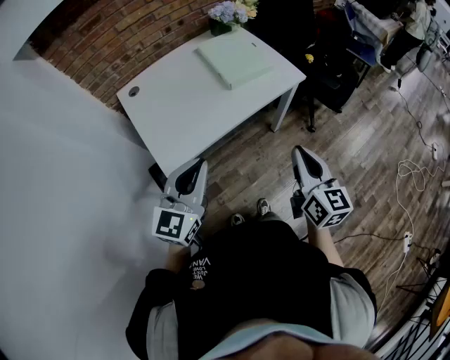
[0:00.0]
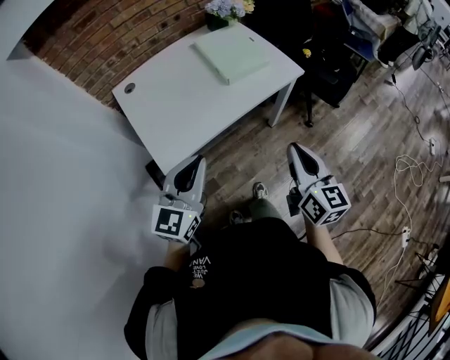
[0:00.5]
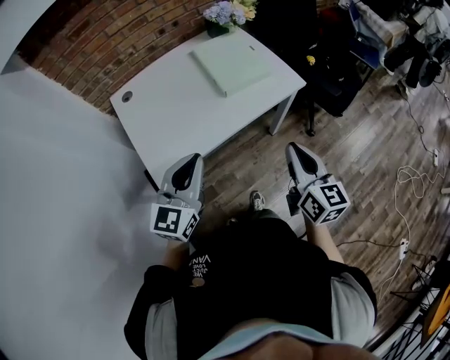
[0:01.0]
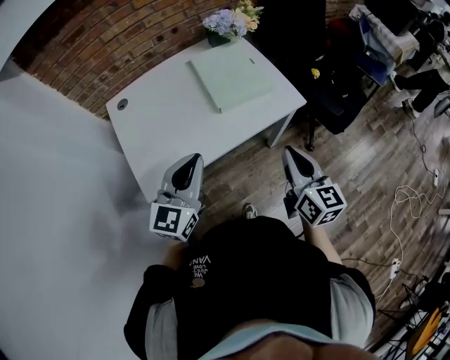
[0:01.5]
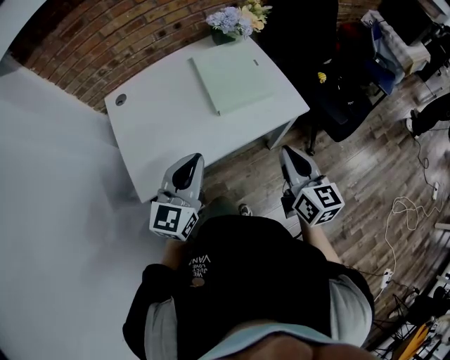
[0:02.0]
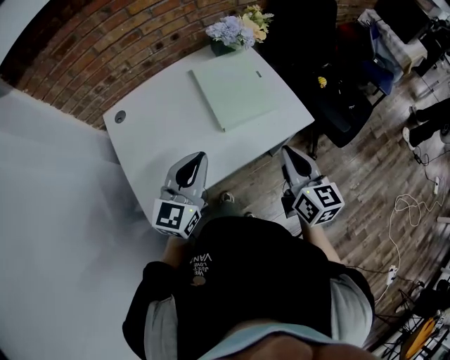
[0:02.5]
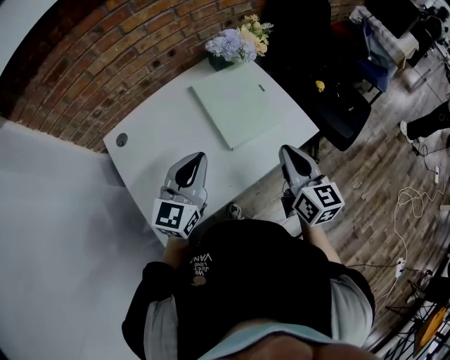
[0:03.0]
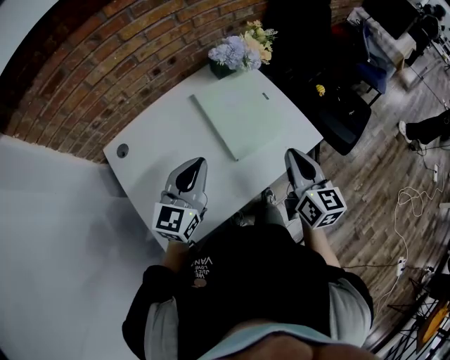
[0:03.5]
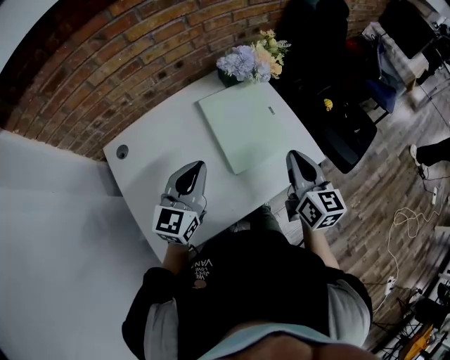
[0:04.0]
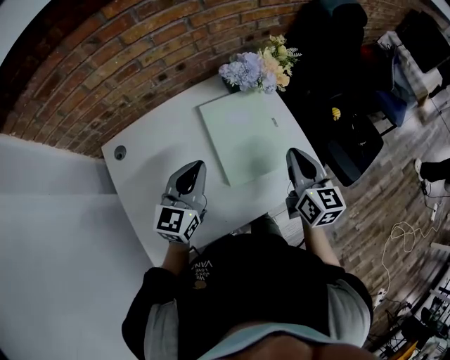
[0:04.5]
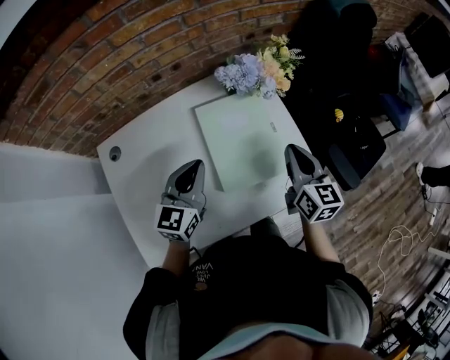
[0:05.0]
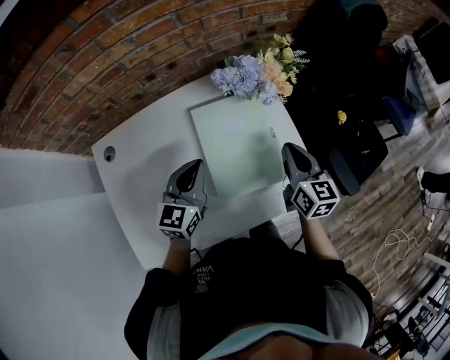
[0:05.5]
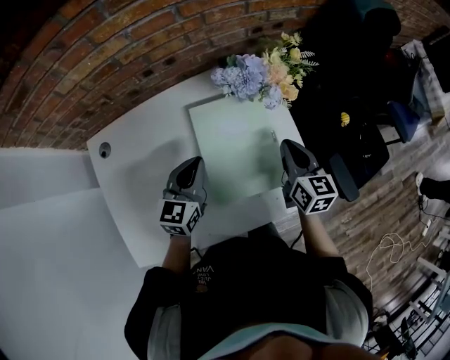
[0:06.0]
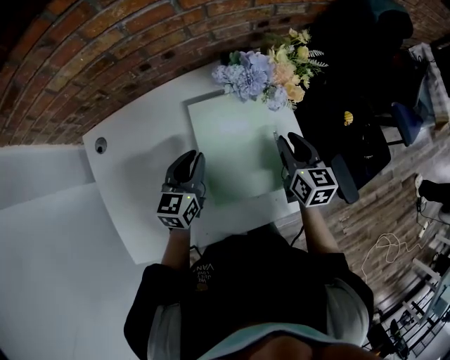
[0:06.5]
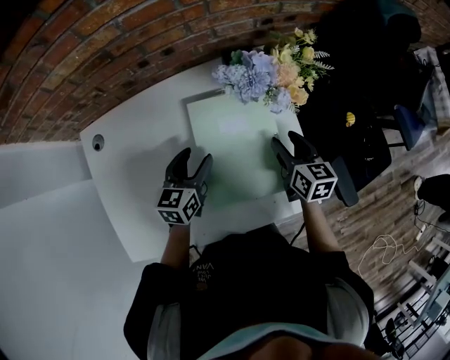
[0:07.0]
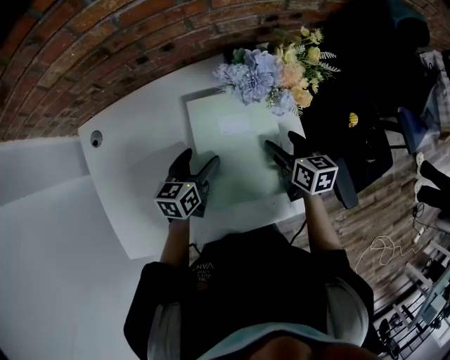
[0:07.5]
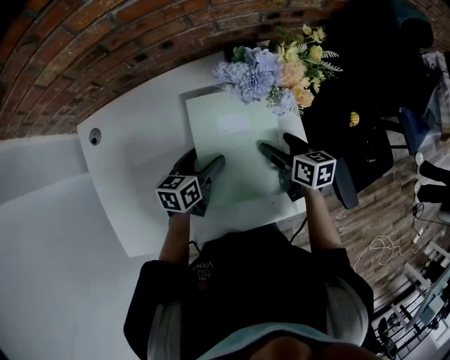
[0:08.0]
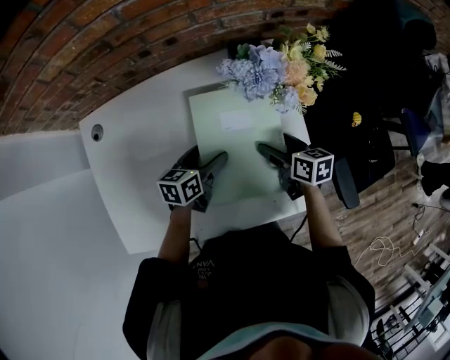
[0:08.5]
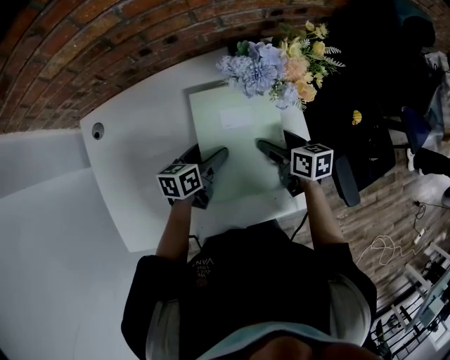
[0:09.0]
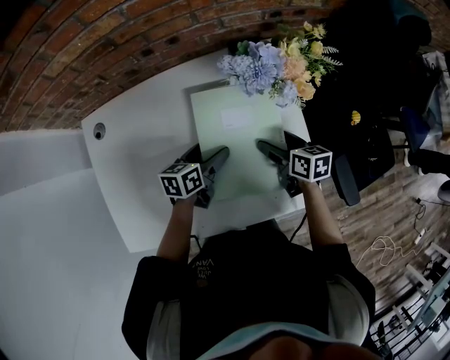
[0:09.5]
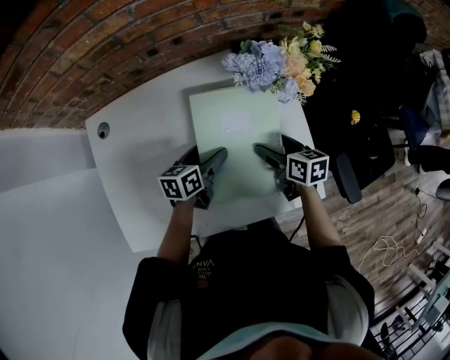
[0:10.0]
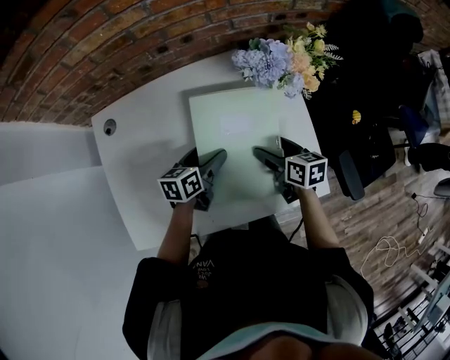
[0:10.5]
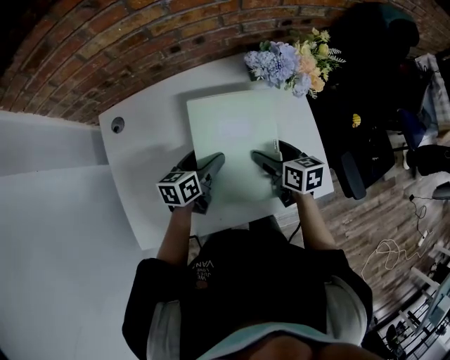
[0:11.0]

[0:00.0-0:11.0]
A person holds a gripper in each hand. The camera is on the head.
0:00.0 to 0:02.0: The right gripper is displaced forward by about 20 cm; the left gripper heads forward and to the right, covering some 20 cm.
0:02.0 to 0:03.5: Both grippers travel together forward and to the left, approximately 15 cm.
0:03.5 to 0:05.5: The right gripper moves forward, approximately 20 cm. Meanwhile the left gripper is displaced forward and downward by approximately 15 cm, and changes its angle by approximately 20 degrees.
0:05.5 to 0:07.5: The right gripper shifts about 15 cm downward and forward, turns by approximately 30 degrees, and opens up. Meanwhile the left gripper goes some 15 cm downward, swivels about 30 degrees, and opens its fingers.
0:07.5 to 0:09.0: The grippers stay close to where they were, moving slightly.
0:09.0 to 0:11.0: The left gripper shifts some 10 cm to the left. The right gripper shifts approximately 10 cm to the left and backward.

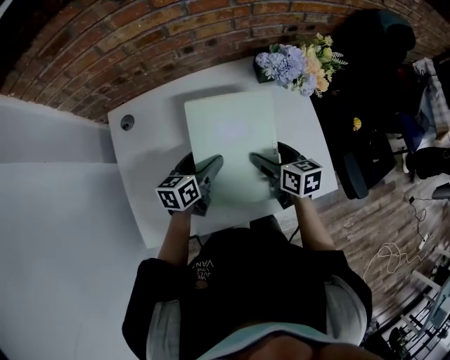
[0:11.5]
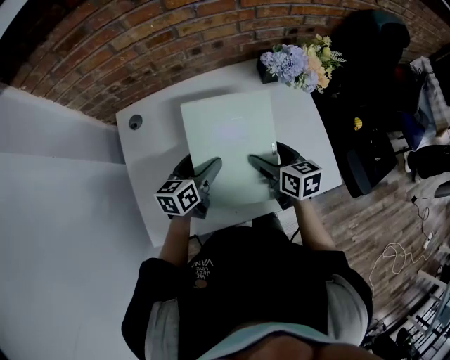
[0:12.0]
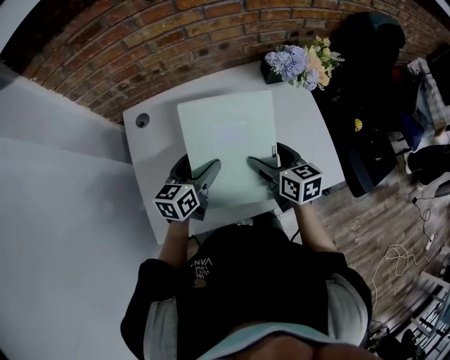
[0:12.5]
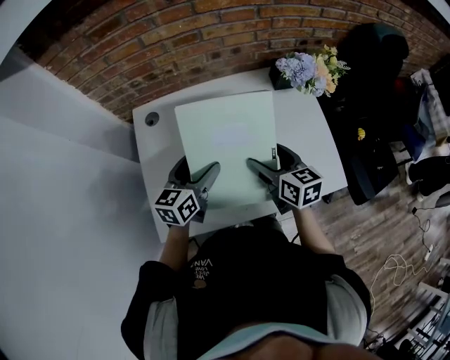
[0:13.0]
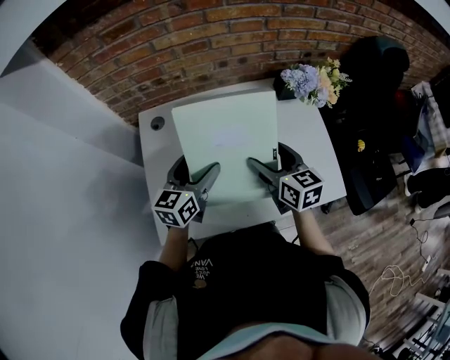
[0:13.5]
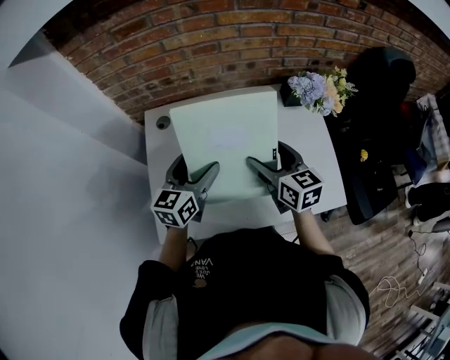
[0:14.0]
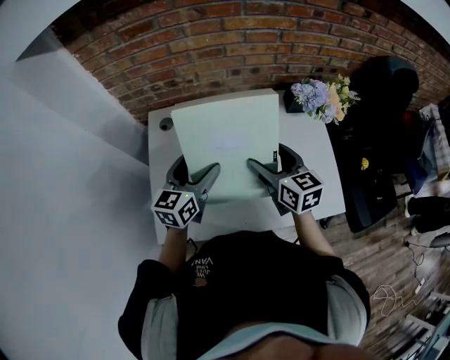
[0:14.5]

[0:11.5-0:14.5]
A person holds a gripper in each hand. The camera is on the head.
0:11.5 to 0:13.0: The right gripper travels to the left and upward by roughly 10 cm. The left gripper travels upward and to the left by roughly 10 cm.
0:13.0 to 0:14.5: The two grippers go about 5 cm upward.

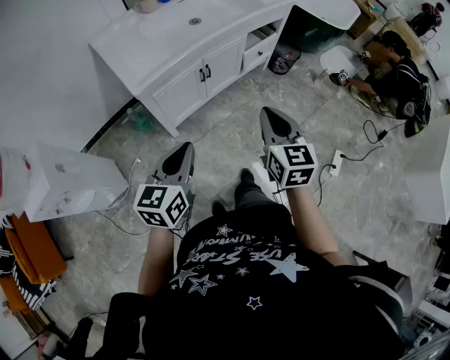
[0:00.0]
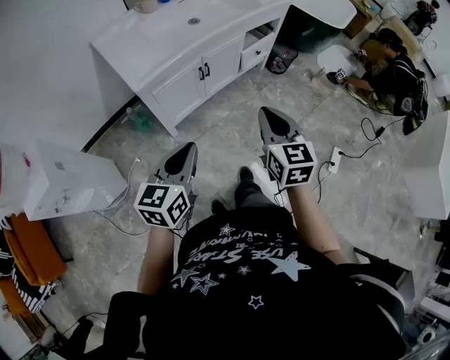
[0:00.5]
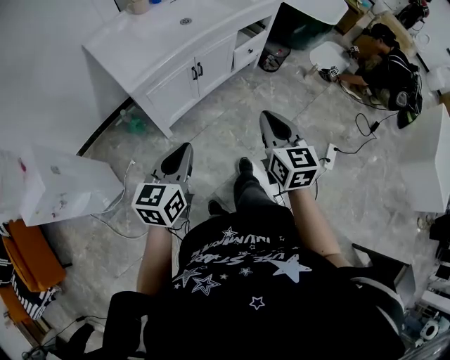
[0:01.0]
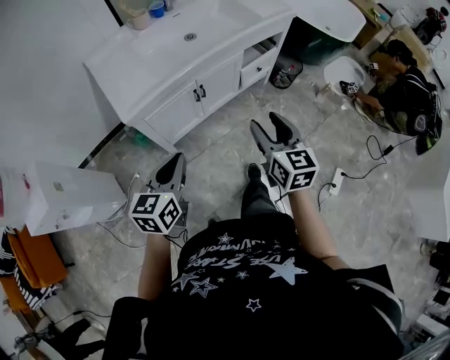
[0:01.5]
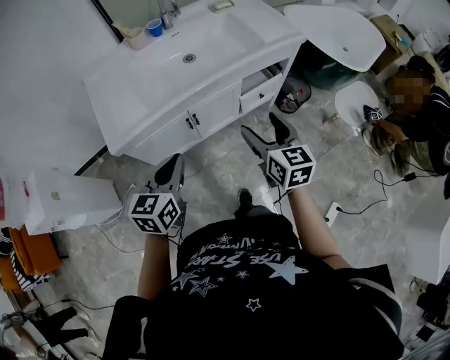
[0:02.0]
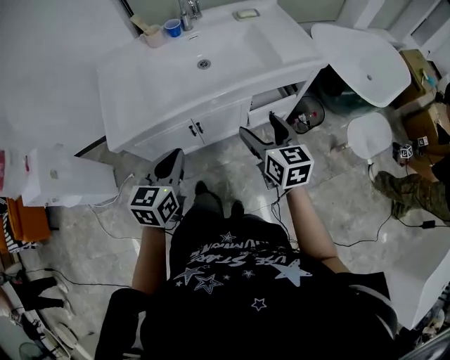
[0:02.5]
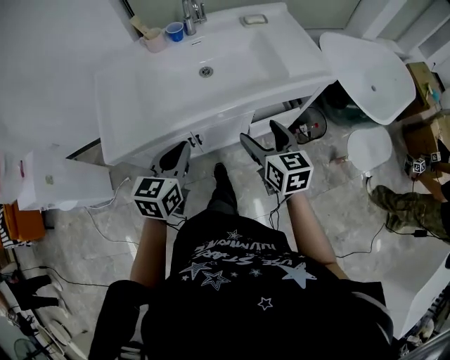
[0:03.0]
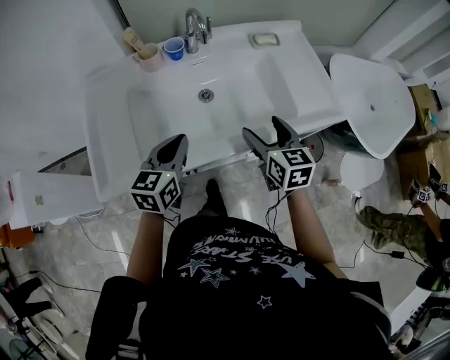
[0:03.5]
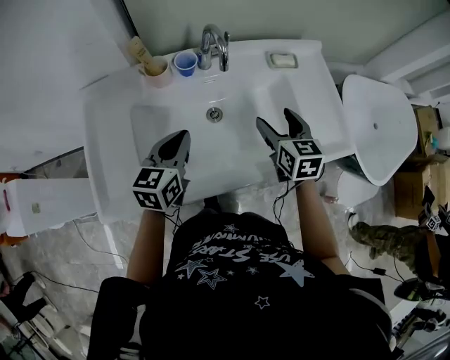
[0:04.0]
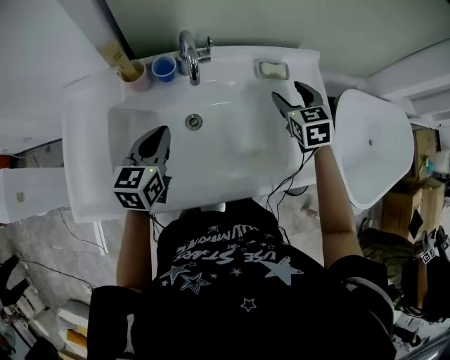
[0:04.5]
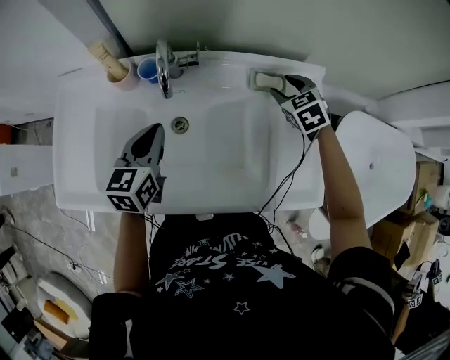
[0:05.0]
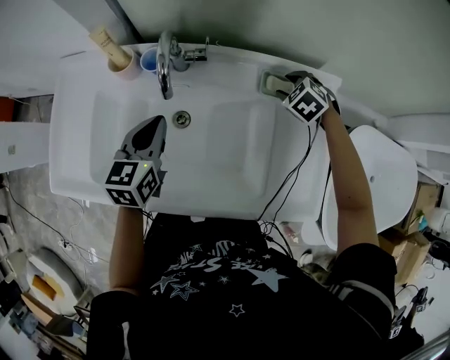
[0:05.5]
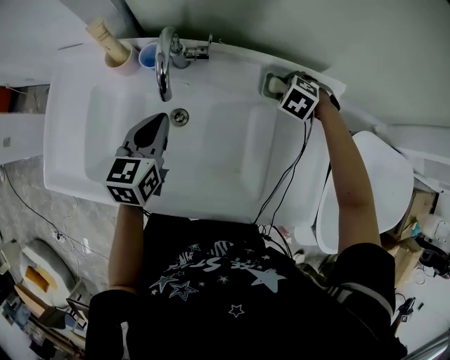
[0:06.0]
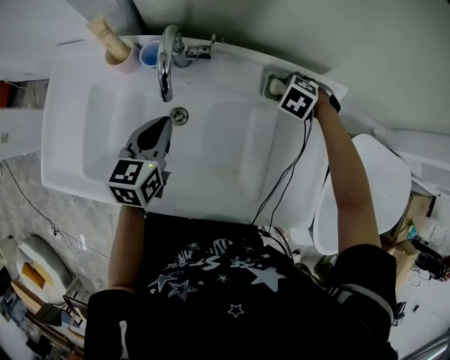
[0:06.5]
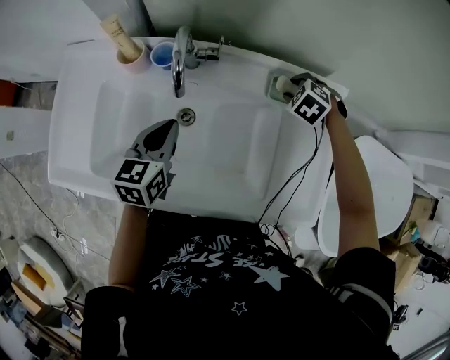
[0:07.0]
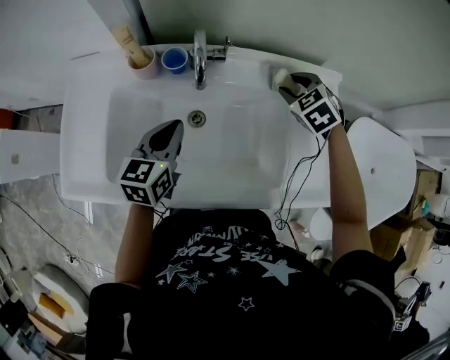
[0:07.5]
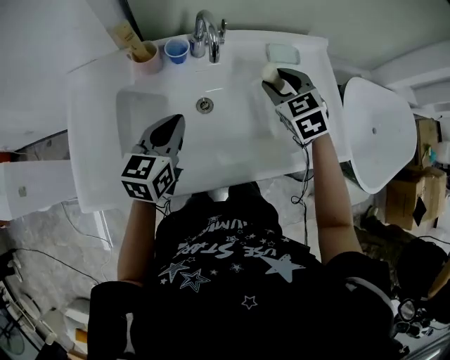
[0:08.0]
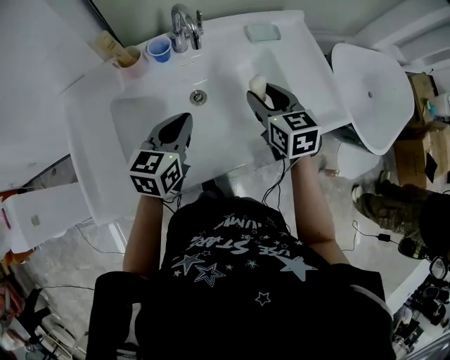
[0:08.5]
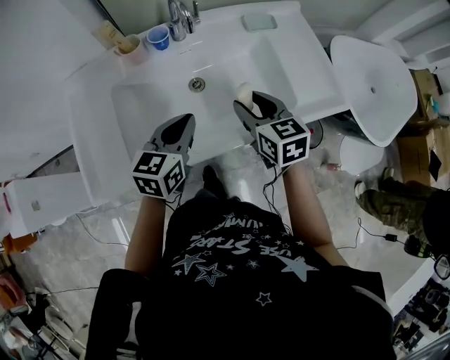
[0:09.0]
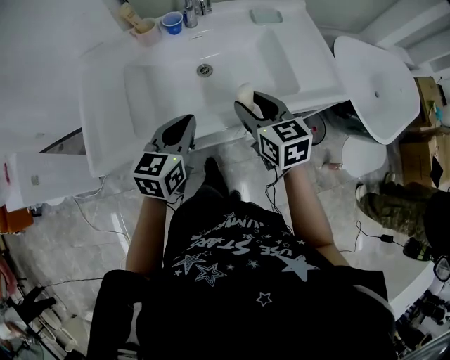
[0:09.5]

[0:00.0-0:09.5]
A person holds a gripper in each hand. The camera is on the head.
0:00.0 to 0:02.0: The left gripper goes some 25 cm forward and to the right. Meanwhile the right gripper shifts some 25 cm forward, and opens.
0:02.0 to 0:04.0: Both grippers are carried forward, roughly 40 cm.
0:04.0 to 0:05.5: The left gripper heads forward and to the right, covering roughly 15 cm, and changes its angle by approximately 20 degrees; the right gripper shifts approximately 30 cm forward, to the right and downward, rotates around the line of its fingers by roughly 60 degrees, counterclockwise from behind, and closes.
0:05.5 to 0:07.5: The right gripper goes approximately 10 cm upward.
0:07.5 to 0:09.5: The left gripper is displaced backward by some 20 cm, and turns by approximately 20 degrees. Meanwhile the right gripper heads backward, covering approximately 35 cm, and rotates around the line of its fingers by some 50 degrees, clockwise from behind.

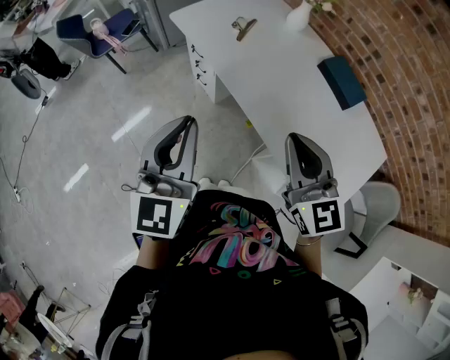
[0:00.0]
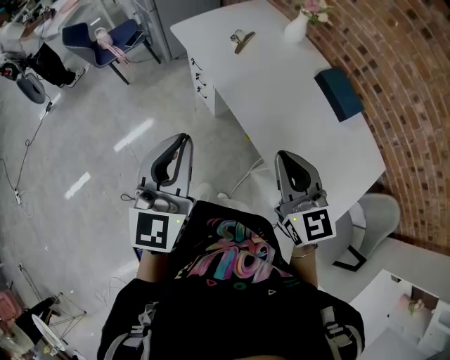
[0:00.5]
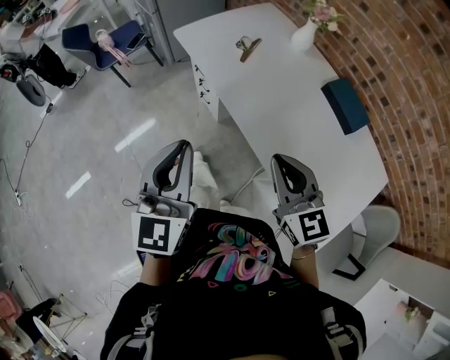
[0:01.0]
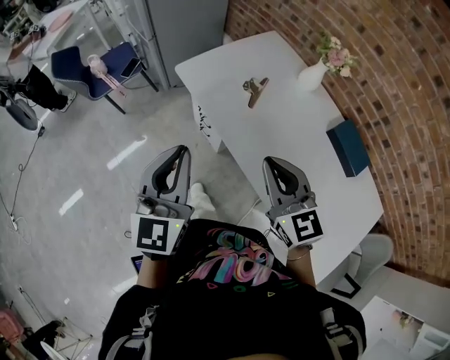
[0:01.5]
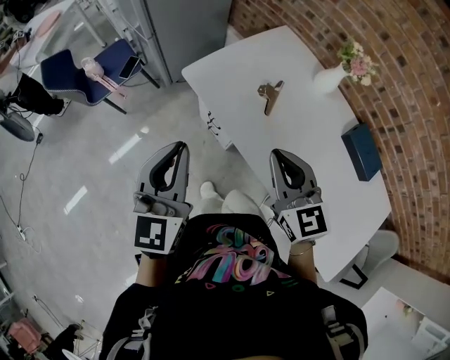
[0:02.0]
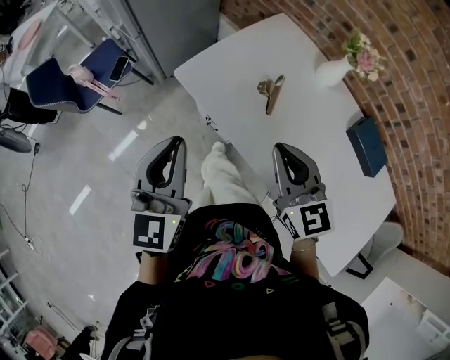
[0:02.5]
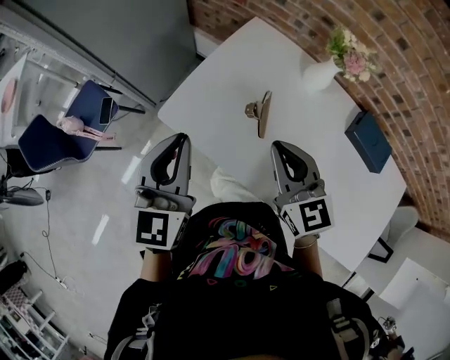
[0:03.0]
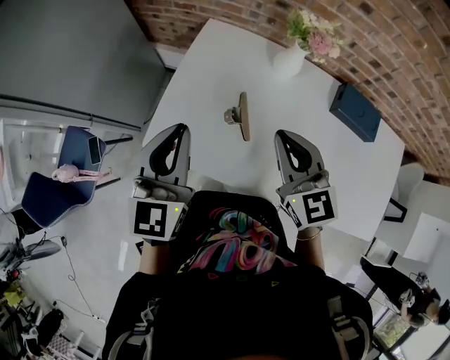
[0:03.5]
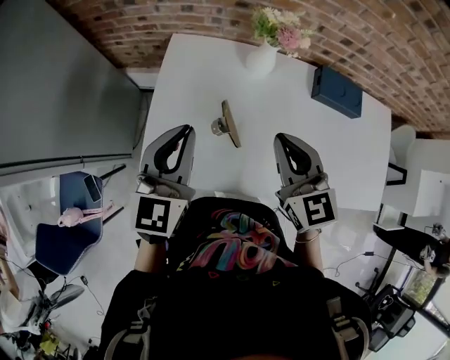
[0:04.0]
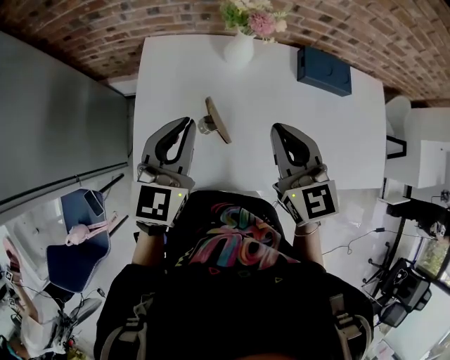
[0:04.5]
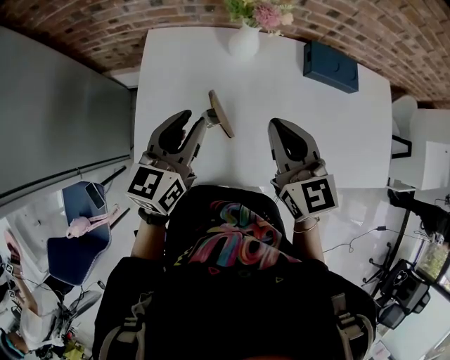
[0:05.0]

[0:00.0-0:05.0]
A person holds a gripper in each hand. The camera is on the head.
0:00.0 to 0:02.5: The two grippers travel together, forward, about 50 cm.
0:02.5 to 0:05.0: The right gripper changes place by roughly 20 cm, and rotates about 50 degrees; the left gripper changes place by some 35 cm, changes its angle by roughly 60 degrees, and opens.
